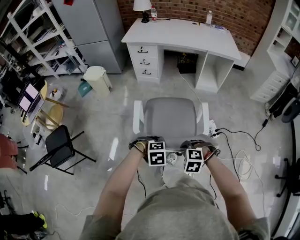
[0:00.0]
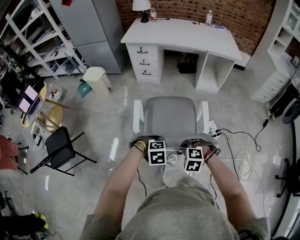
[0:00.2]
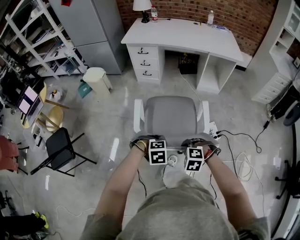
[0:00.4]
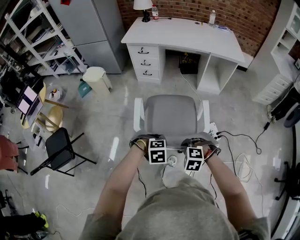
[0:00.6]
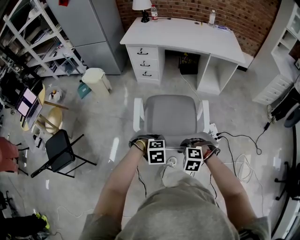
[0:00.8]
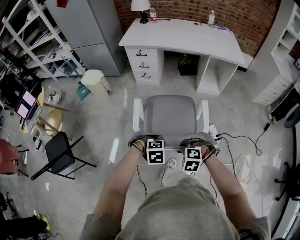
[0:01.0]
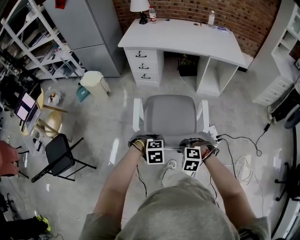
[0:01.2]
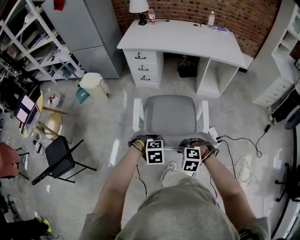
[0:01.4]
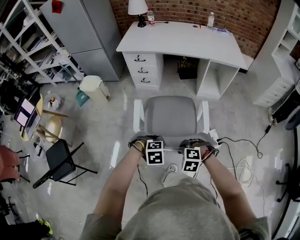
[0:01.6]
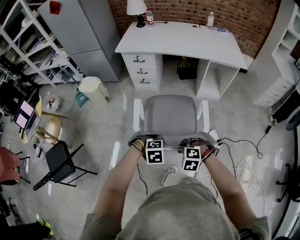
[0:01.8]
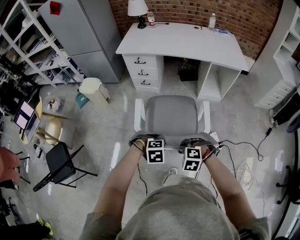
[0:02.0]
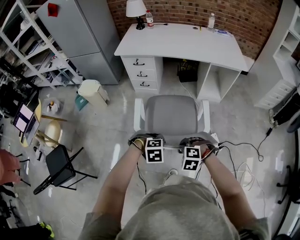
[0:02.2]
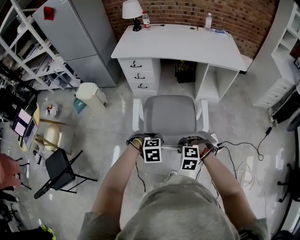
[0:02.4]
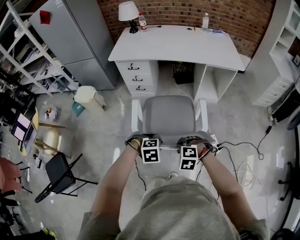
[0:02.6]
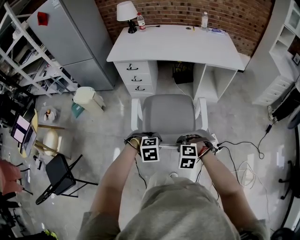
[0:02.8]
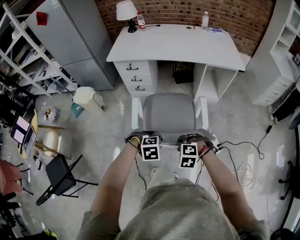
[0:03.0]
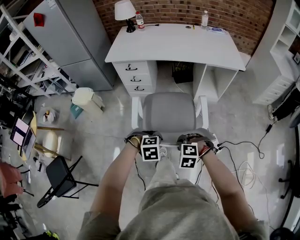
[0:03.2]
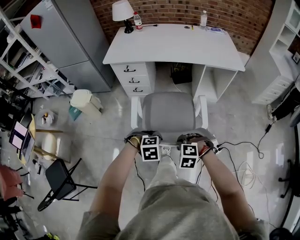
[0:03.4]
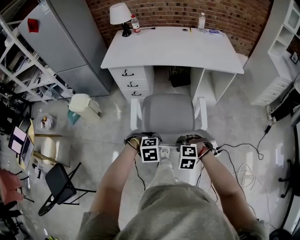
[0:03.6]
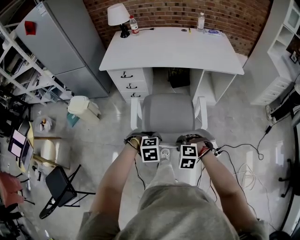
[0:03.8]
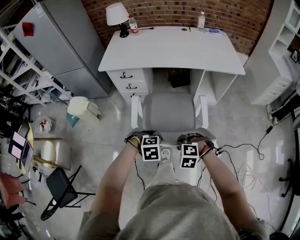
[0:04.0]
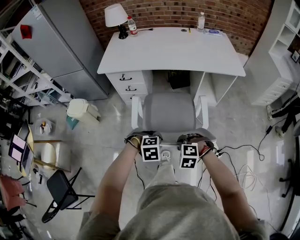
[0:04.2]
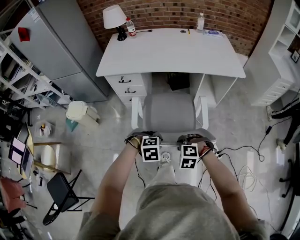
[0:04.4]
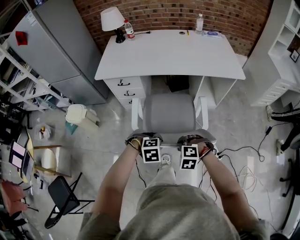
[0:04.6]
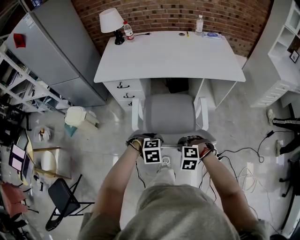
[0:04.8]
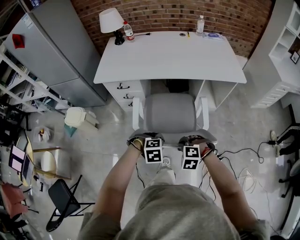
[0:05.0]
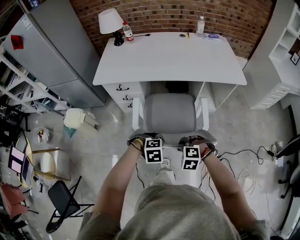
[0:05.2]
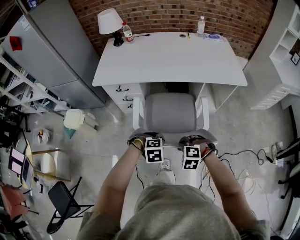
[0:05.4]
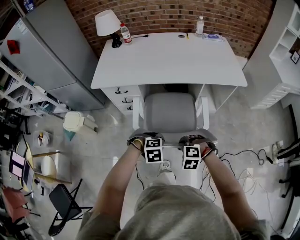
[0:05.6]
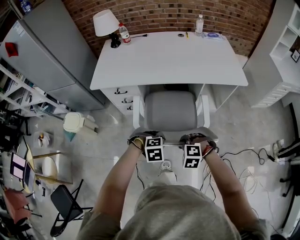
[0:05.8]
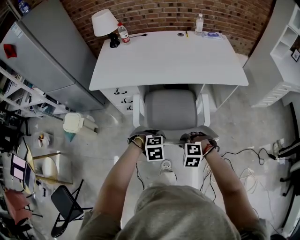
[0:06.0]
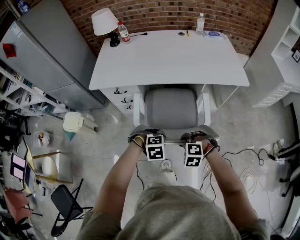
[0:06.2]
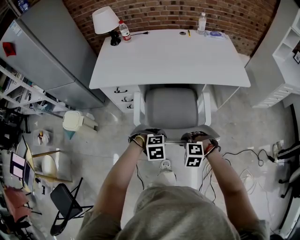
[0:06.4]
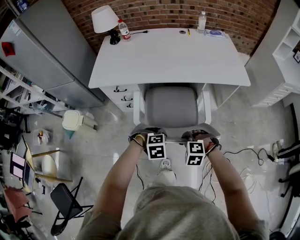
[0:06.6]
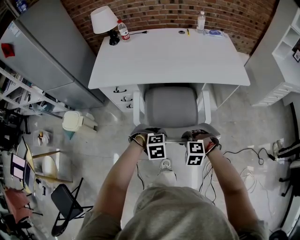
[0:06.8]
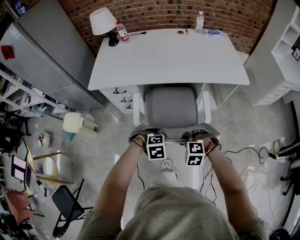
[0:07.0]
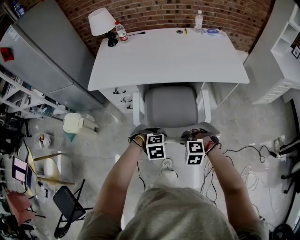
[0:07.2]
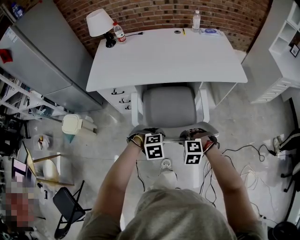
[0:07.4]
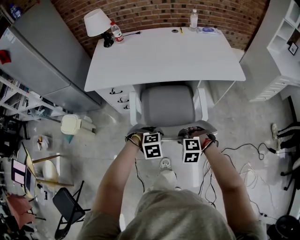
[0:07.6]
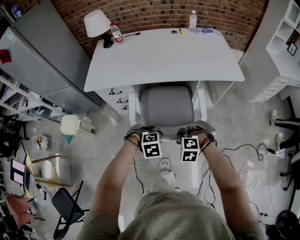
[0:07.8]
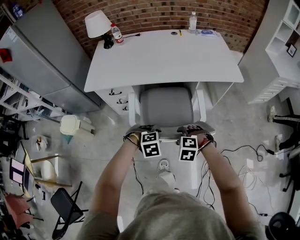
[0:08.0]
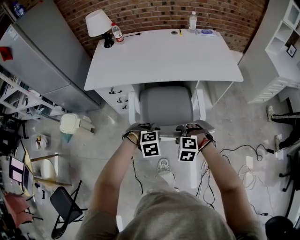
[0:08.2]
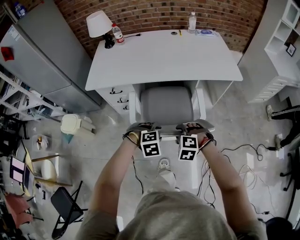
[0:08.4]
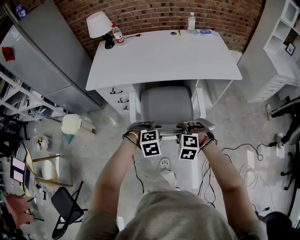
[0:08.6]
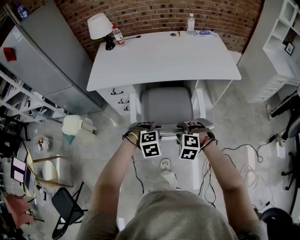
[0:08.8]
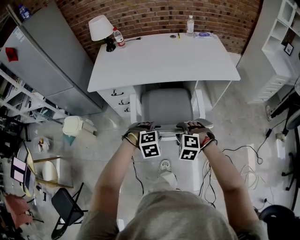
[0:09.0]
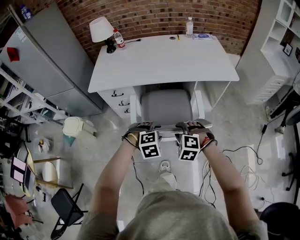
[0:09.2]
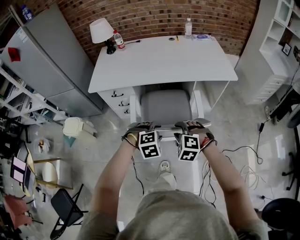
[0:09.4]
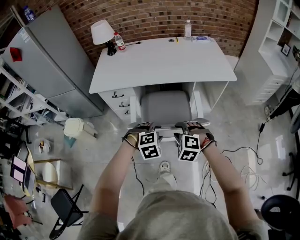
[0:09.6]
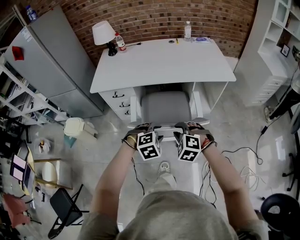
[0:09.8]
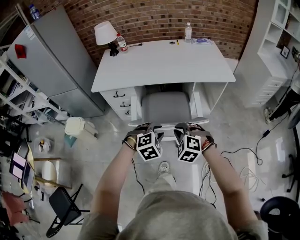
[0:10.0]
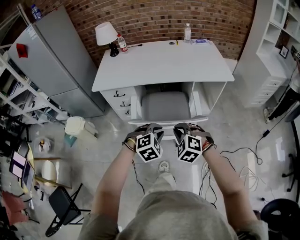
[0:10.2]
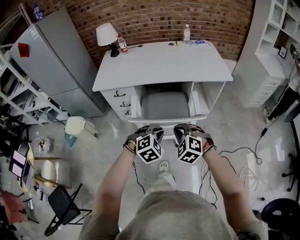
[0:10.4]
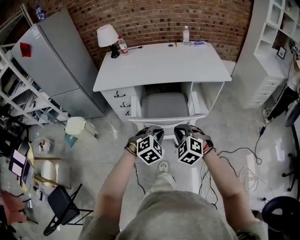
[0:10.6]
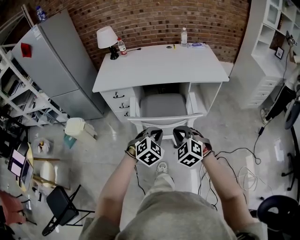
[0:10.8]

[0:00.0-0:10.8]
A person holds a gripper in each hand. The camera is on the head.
0:00.0 to 0:01.6: Both grippers travel together forward, some 15 cm.
0:01.6 to 0:03.0: The grippers both shift forward by about 10 cm.
0:03.0 to 0:04.6: The two grippers go about 15 cm forward.
0:04.6 to 0:06.2: The grippers both shift forward by about 10 cm.
0:06.2 to 0:07.8: Both grippers stay put.
0:07.8 to 0:09.2: Both grippers move upward, approximately 5 cm. The left gripper opens up, while the right gripper opens up.
0:09.2 to 0:10.8: The grippers both shift backward and upward by roughly 10 cm. The left gripper turns by some 30 degrees, and closes its fingers. The right gripper changes its angle by approximately 30 degrees, and closes its fingers.

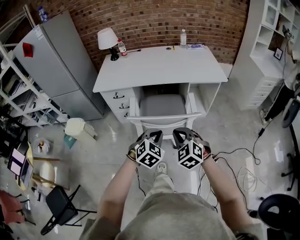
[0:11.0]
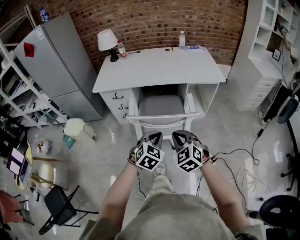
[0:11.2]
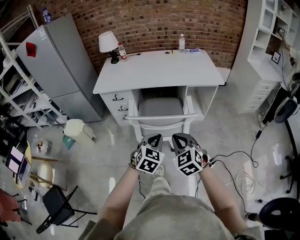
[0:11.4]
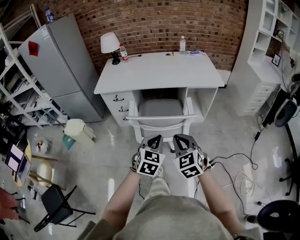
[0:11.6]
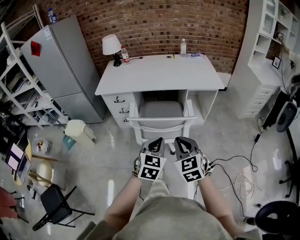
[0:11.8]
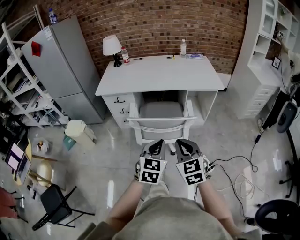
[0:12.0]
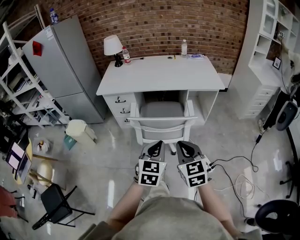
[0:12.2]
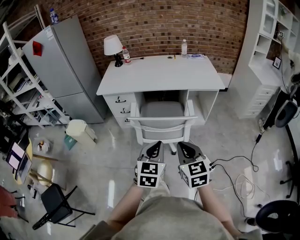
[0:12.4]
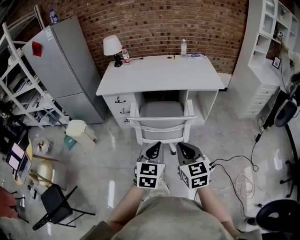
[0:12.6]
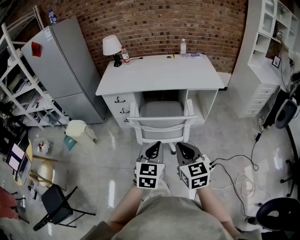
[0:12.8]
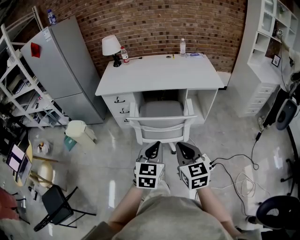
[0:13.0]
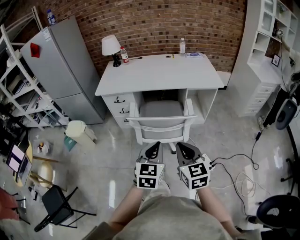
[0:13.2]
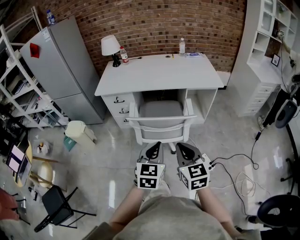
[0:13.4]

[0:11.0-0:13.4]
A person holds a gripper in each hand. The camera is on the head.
0:11.0 to 0:12.2: The two grippers go some 10 cm backward and upward. The left gripper rotates approximately 30 degrees, while the right gripper rotates about 30 degrees.
0:12.2 to 0:13.4: The grippers move only a little.

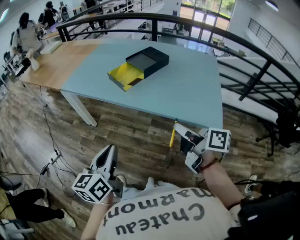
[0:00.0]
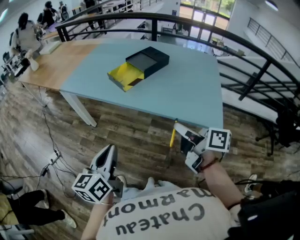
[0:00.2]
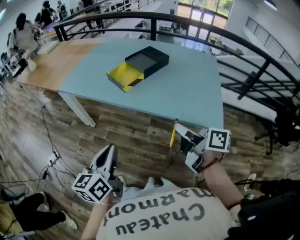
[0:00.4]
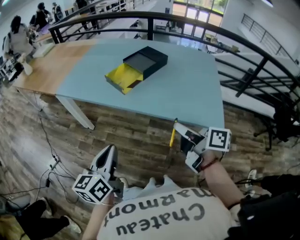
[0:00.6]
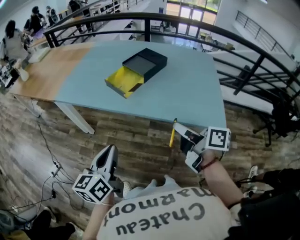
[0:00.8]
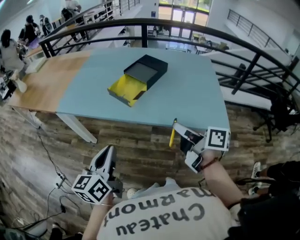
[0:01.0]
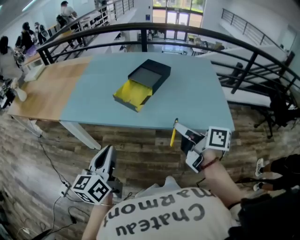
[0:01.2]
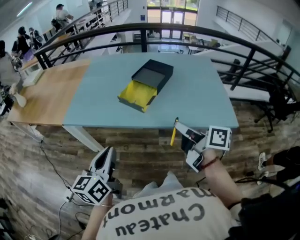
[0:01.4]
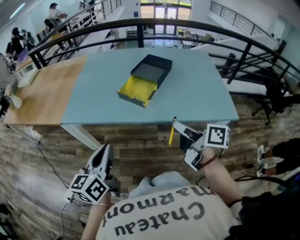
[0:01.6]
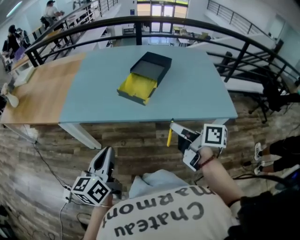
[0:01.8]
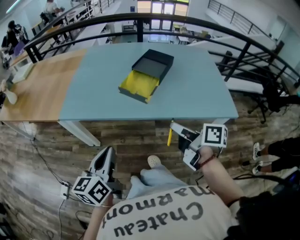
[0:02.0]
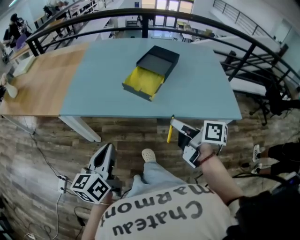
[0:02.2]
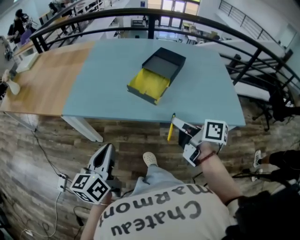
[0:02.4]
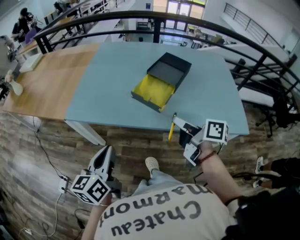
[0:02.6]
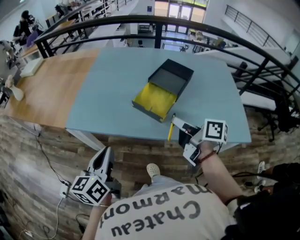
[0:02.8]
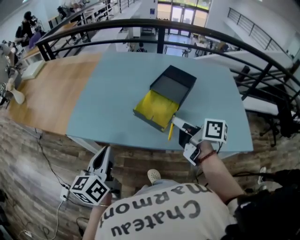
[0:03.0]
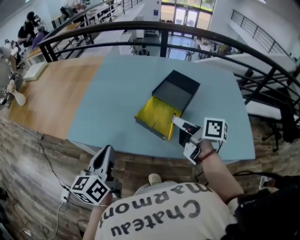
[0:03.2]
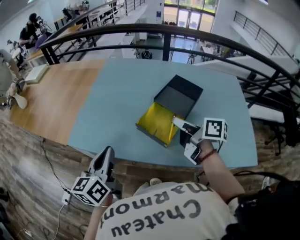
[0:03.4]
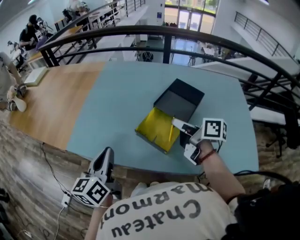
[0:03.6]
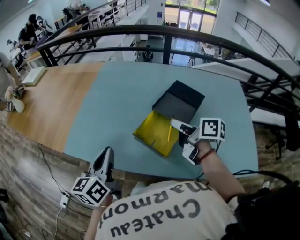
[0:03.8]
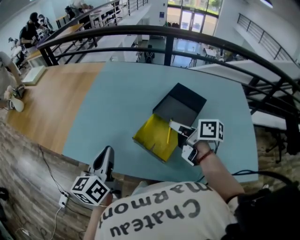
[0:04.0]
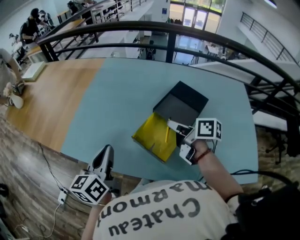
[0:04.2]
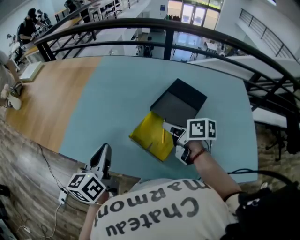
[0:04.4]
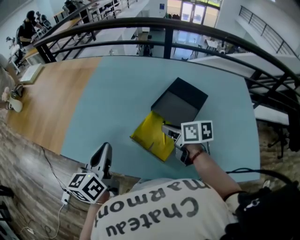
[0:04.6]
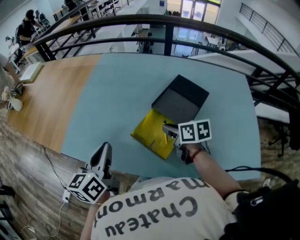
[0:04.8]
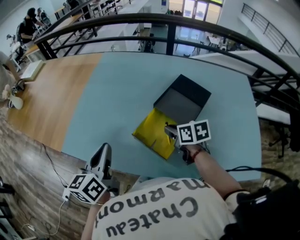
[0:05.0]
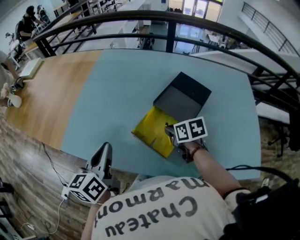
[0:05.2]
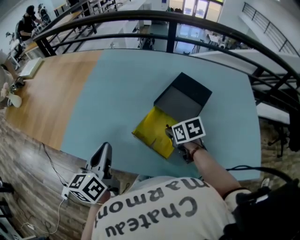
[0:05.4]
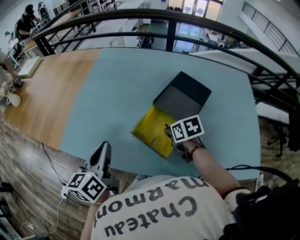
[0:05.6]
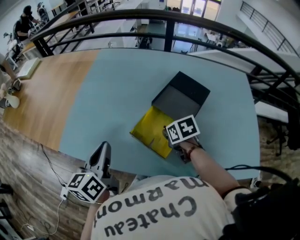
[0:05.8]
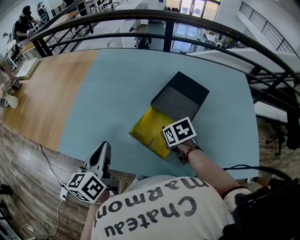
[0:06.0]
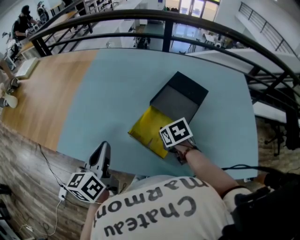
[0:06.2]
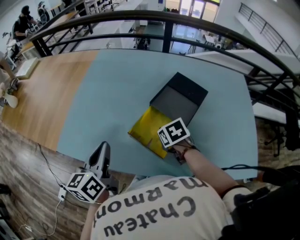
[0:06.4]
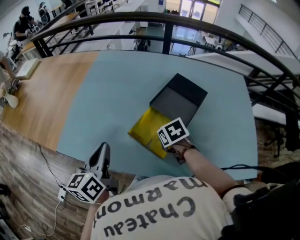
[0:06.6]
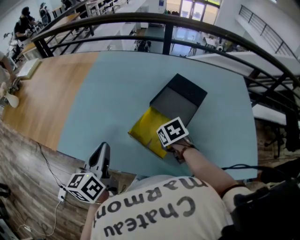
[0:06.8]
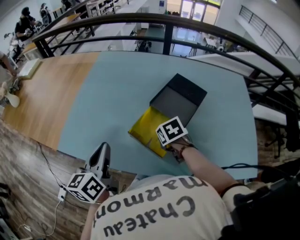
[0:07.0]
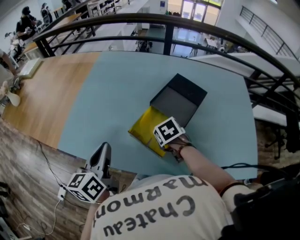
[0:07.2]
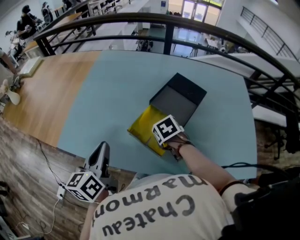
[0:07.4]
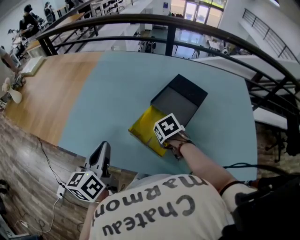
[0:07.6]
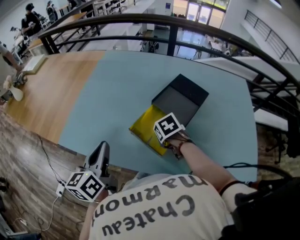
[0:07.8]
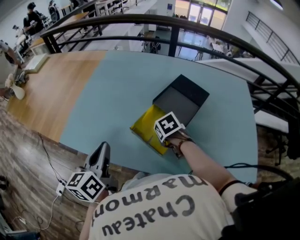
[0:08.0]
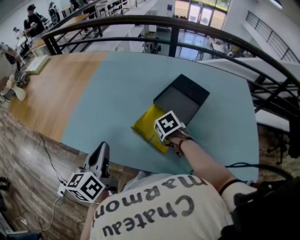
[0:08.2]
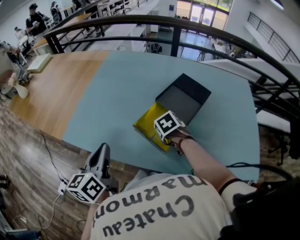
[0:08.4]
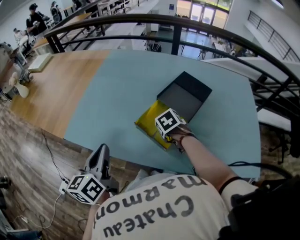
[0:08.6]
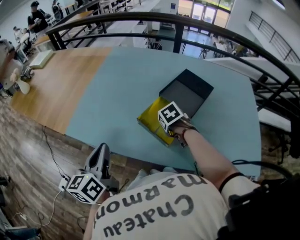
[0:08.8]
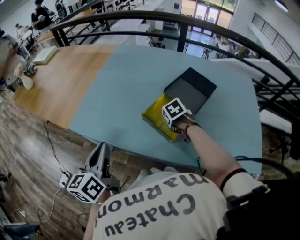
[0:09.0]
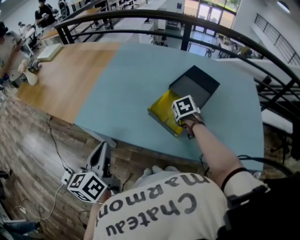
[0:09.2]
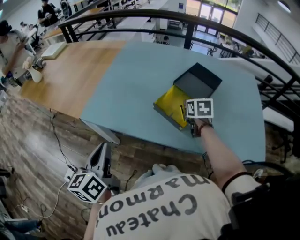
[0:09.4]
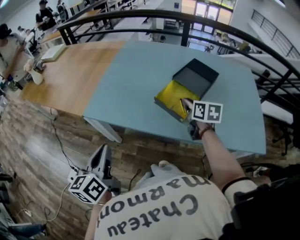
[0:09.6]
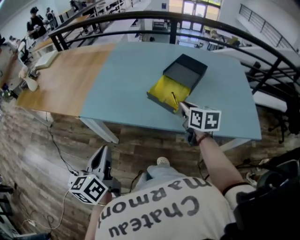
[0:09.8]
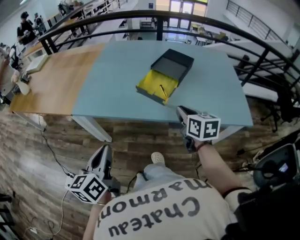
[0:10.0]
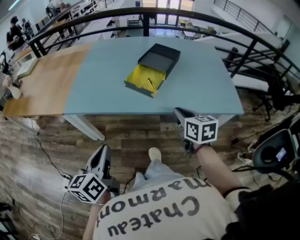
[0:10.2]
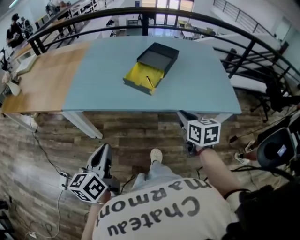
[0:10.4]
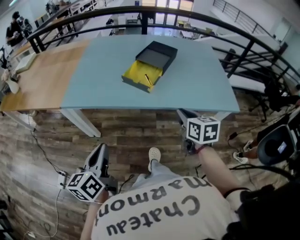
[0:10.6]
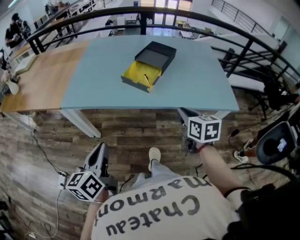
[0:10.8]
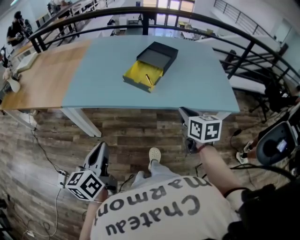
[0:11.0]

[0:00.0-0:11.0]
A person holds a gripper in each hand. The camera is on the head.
0:00.0 to 0:01.6: The two grippers go approximately 25 cm to the left and forward.
0:01.6 to 0:03.2: Both grippers move forward, about 25 cm.
0:03.2 to 0:04.8: The left gripper is displaced forward and to the right by approximately 15 cm, while the right gripper goes roughly 15 cm forward and downward, and turns by roughly 30 degrees.
0:04.8 to 0:06.2: The right gripper heads downward, covering some 5 cm, and swivels approximately 30 degrees.
0:06.2 to 0:07.8: The grippers move only a little.
0:07.8 to 0:09.4: The left gripper travels backward and to the left by about 20 cm; the right gripper goes about 10 cm upward, and swivels about 30 degrees.
0:09.4 to 0:11.0: The left gripper moves backward, about 20 cm, while the right gripper heads backward, covering some 35 cm.
